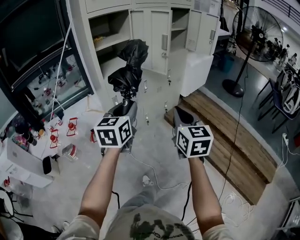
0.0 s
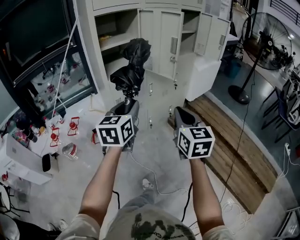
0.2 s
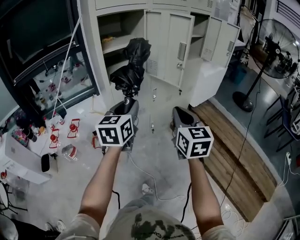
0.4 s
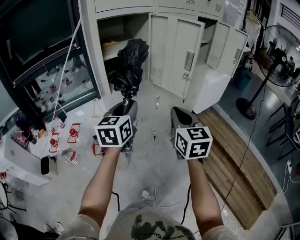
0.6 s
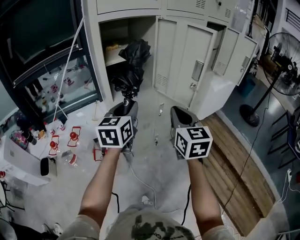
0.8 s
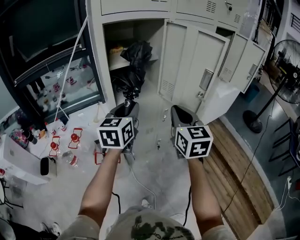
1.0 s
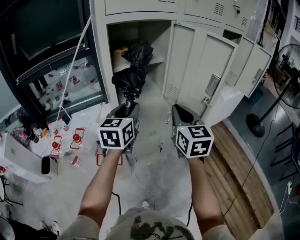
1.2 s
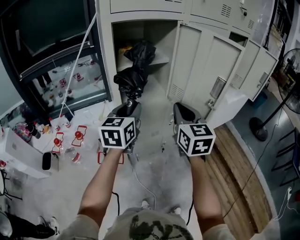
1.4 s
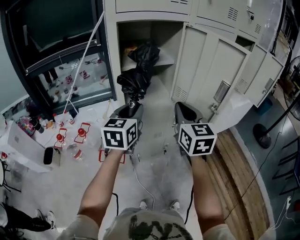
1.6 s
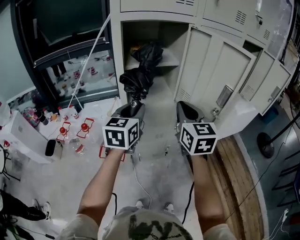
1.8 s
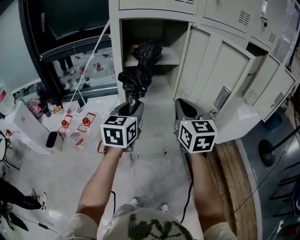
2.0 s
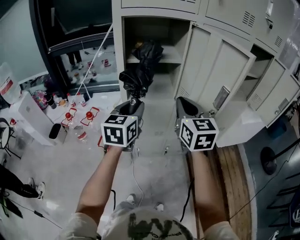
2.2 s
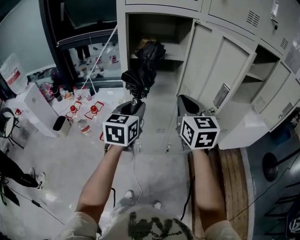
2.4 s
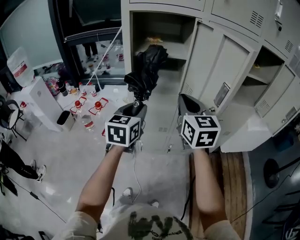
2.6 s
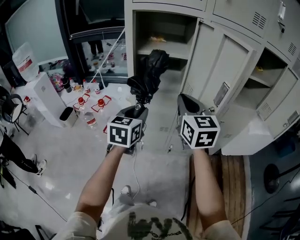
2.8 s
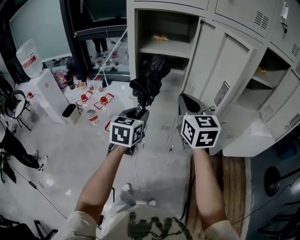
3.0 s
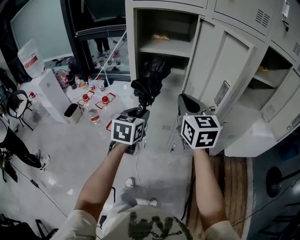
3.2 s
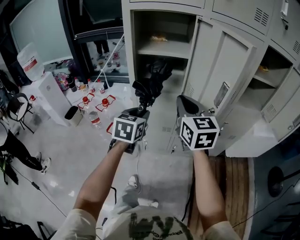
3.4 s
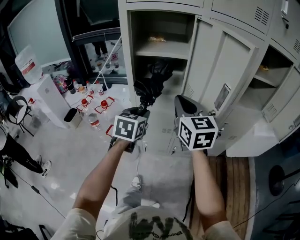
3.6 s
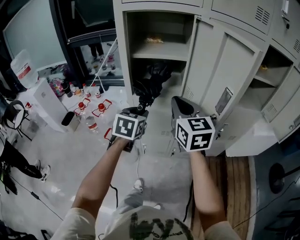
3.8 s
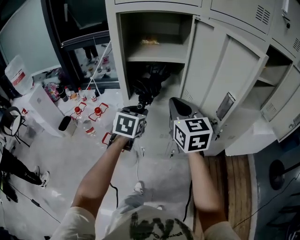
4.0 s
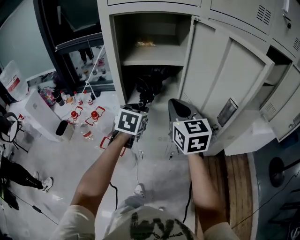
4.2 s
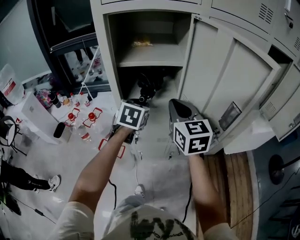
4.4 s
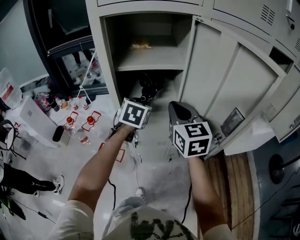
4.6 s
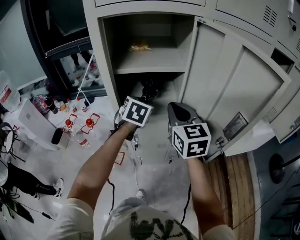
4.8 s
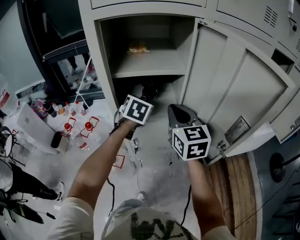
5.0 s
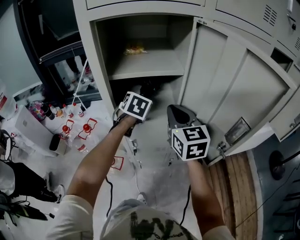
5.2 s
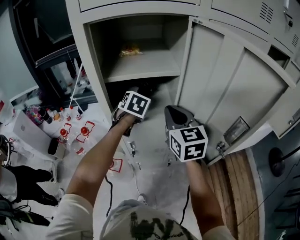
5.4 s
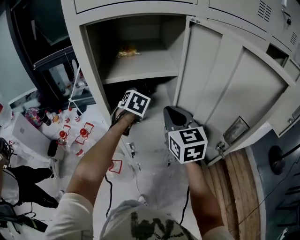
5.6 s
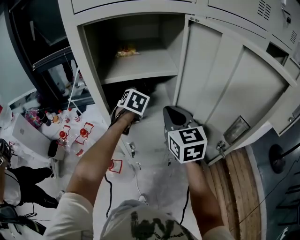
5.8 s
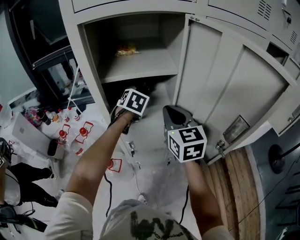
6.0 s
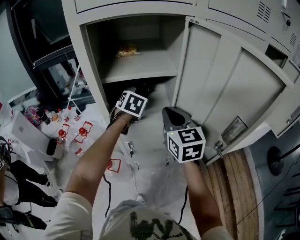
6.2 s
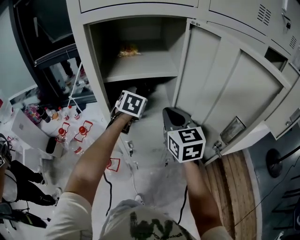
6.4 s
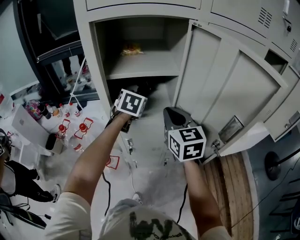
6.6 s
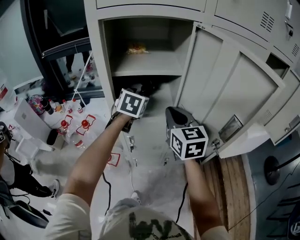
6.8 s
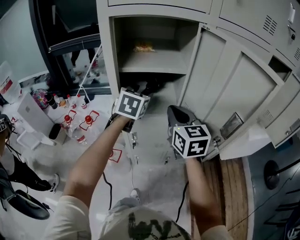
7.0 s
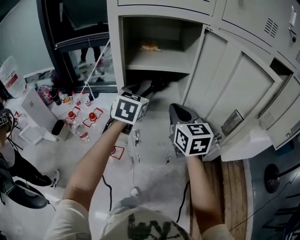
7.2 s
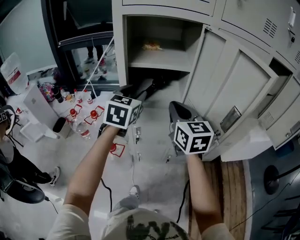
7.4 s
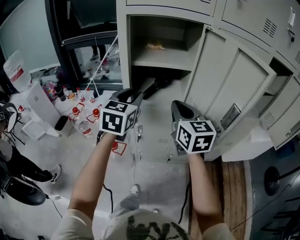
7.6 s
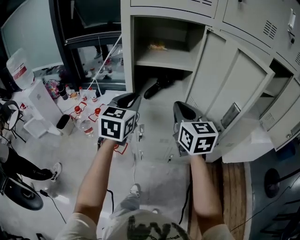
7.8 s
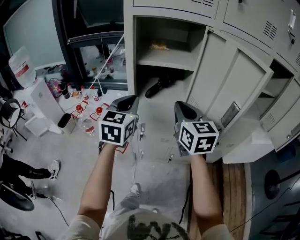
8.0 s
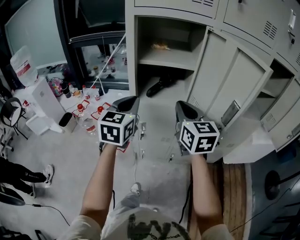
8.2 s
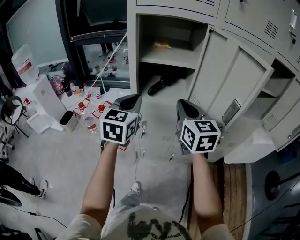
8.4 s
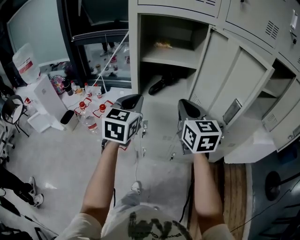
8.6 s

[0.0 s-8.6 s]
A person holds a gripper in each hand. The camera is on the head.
0.0 to 1.4 s: Both grippers travel together forward, about 30 cm.
1.4 to 2.8 s: The left gripper travels backward and downward by roughly 10 cm, and changes its angle by about 20 degrees. The right gripper changes its angle by about 30 degrees.
2.8 to 4.4 s: The right gripper travels forward by approximately 10 cm, while the left gripper travels forward by about 15 cm.
4.4 to 5.8 s: The right gripper ends up some 5 cm from where it was, while the left gripper goes about 15 cm forward and downward.
5.8 to 7.2 s: The left gripper shifts roughly 15 cm upward and backward, rotates roughly 30 degrees, and opens; the right gripper shifts by about 5 cm.
7.2 to 8.6 s: The right gripper heads backward, covering about 5 cm; the left gripper shifts roughly 15 cm backward and to the left, and closes its fingers.

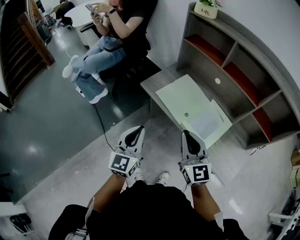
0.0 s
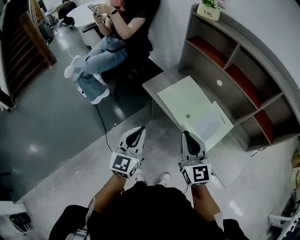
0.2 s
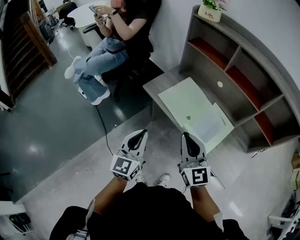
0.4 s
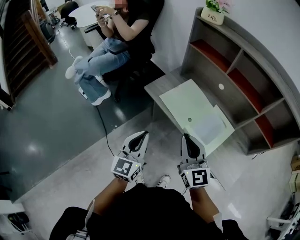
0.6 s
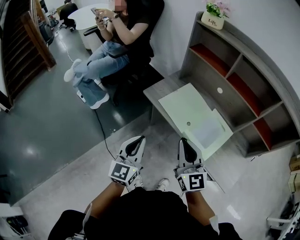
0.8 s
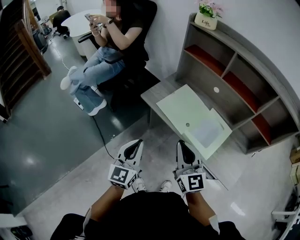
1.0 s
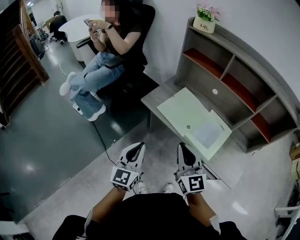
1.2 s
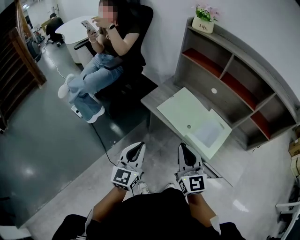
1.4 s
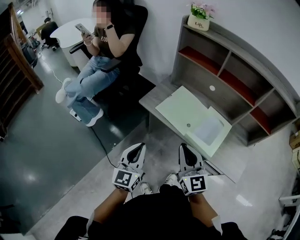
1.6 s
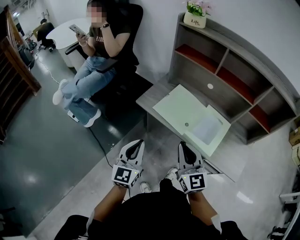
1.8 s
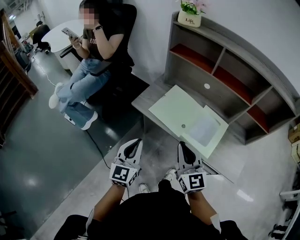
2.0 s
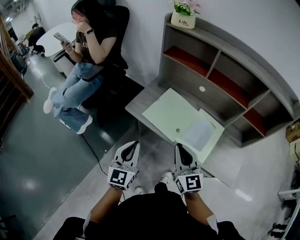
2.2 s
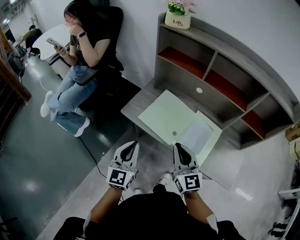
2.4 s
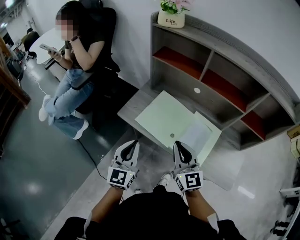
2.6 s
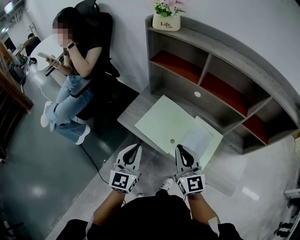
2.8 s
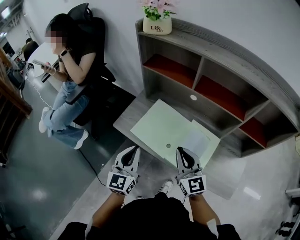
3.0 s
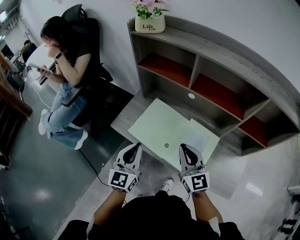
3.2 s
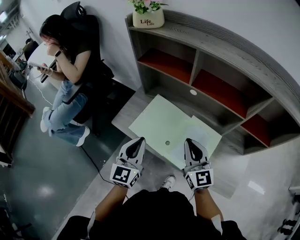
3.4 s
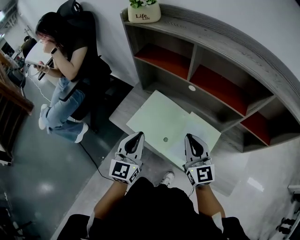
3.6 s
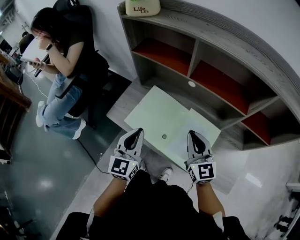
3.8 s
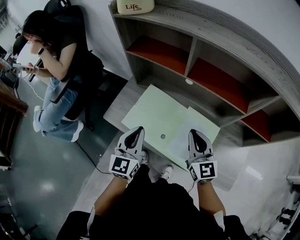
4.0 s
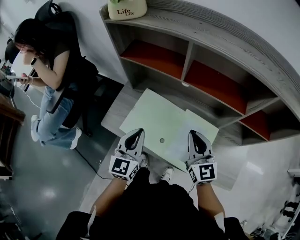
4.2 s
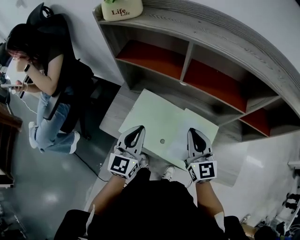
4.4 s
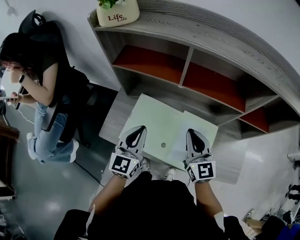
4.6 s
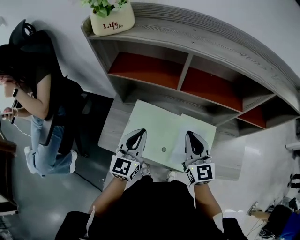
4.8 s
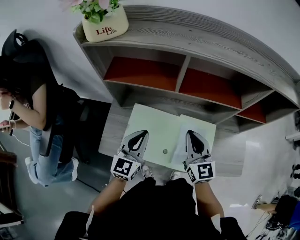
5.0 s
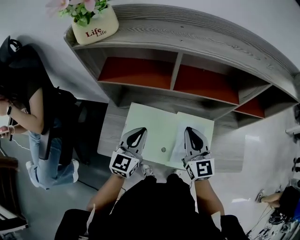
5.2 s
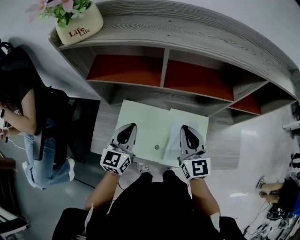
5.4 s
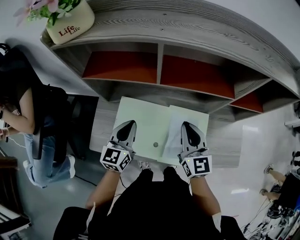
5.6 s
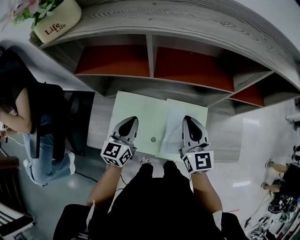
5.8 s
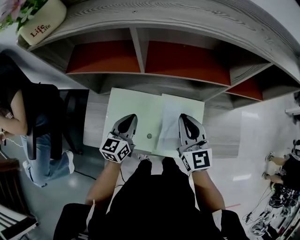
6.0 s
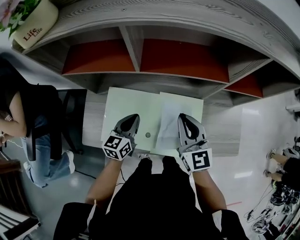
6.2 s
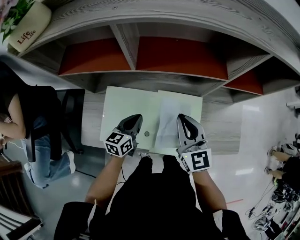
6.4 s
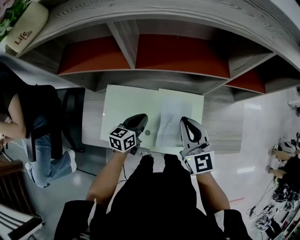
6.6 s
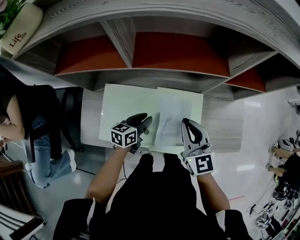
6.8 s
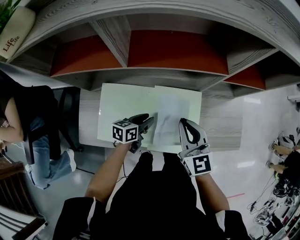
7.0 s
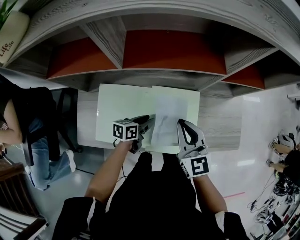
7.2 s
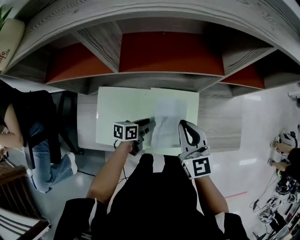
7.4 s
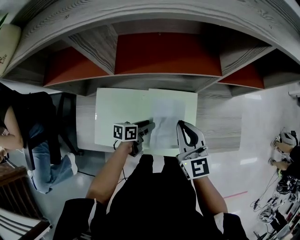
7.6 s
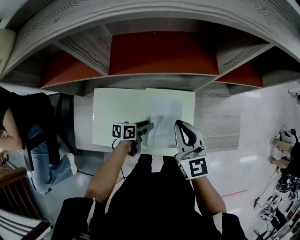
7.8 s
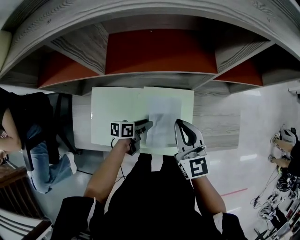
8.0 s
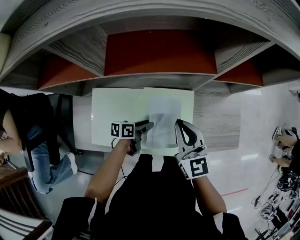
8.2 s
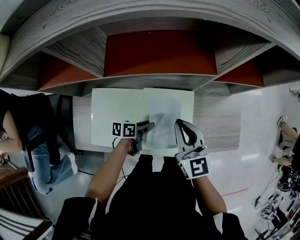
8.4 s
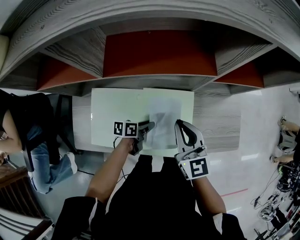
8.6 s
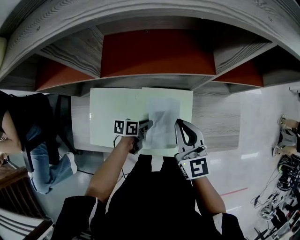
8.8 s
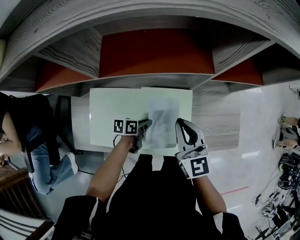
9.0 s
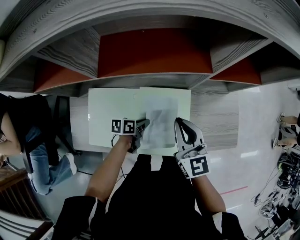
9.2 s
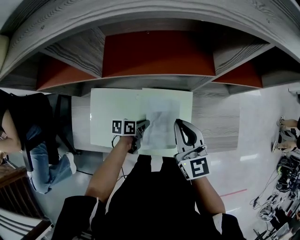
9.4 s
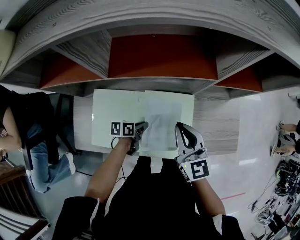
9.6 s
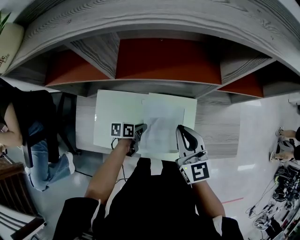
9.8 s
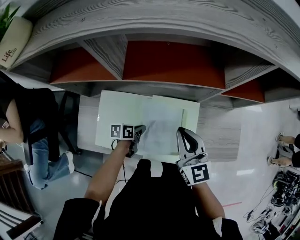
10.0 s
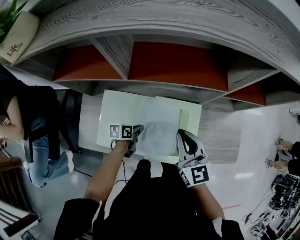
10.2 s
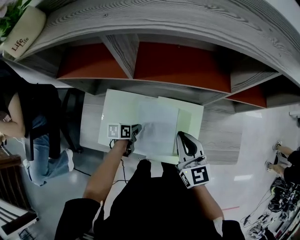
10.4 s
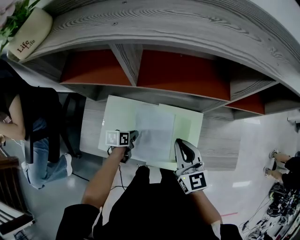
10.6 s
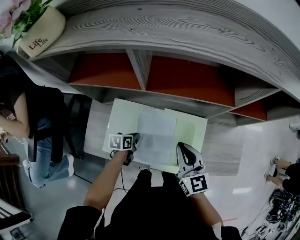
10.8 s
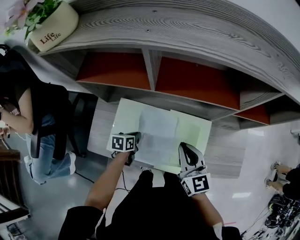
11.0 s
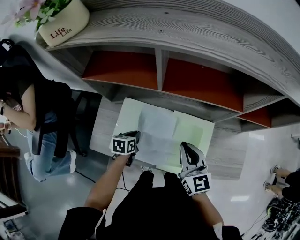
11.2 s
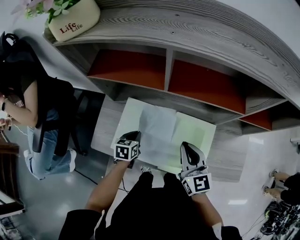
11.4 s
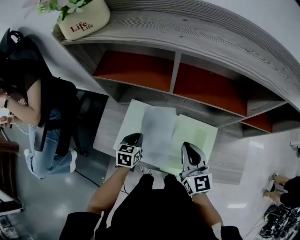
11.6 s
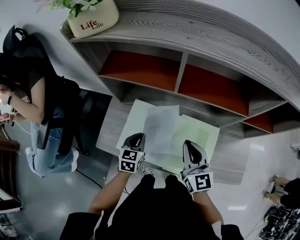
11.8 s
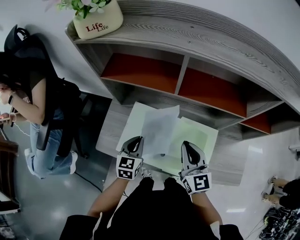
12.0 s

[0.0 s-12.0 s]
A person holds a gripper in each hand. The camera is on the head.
0.0 to 1.6 s: The grippers both shift to the left by about 5 cm.
1.6 to 3.0 s: Both grippers move forward and to the right, approximately 20 cm.
3.0 to 4.4 s: Both grippers travel together forward and to the right, approximately 15 cm.
4.4 to 6.0 s: The left gripper moves downward and forward, some 15 cm, and changes its angle by some 30 degrees, while the right gripper moves approximately 5 cm.
6.0 to 7.6 s: The right gripper goes roughly 5 cm to the right; the left gripper shifts roughly 20 cm downward and to the right, changes its angle by about 50 degrees, and opens.
7.6 to 9.0 s: The left gripper closes its fingers.
9.0 to 10.4 s: The right gripper shifts by about 5 cm, while the left gripper travels to the left by approximately 10 cm.
10.4 to 12.0 s: The left gripper travels upward by some 15 cm, and turns by roughly 50 degrees; the right gripper changes place by about 10 cm.

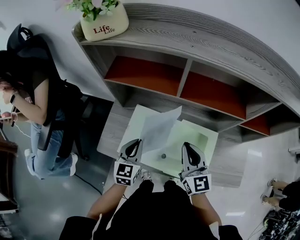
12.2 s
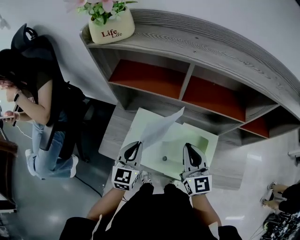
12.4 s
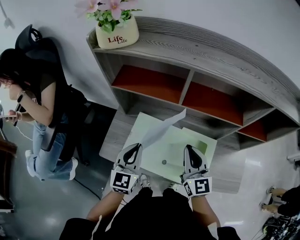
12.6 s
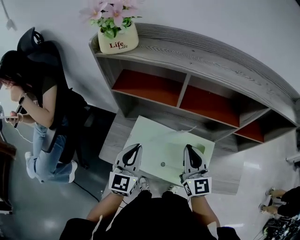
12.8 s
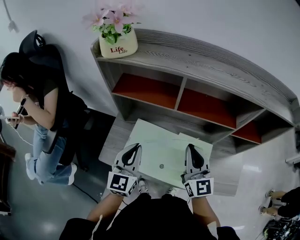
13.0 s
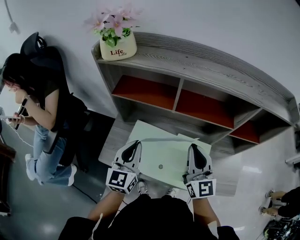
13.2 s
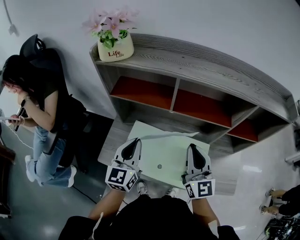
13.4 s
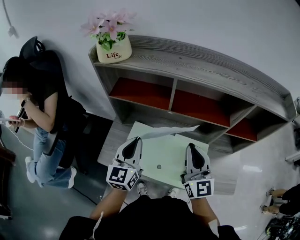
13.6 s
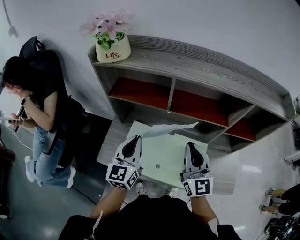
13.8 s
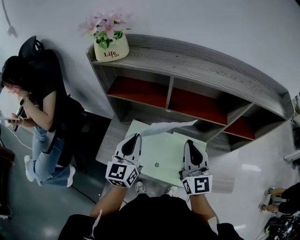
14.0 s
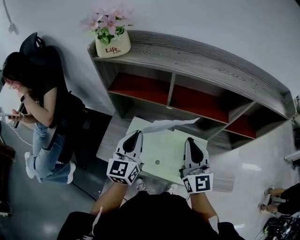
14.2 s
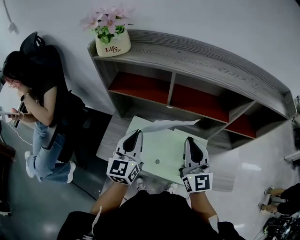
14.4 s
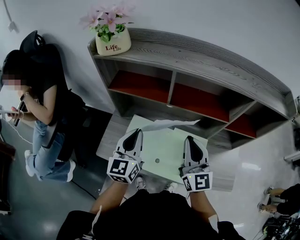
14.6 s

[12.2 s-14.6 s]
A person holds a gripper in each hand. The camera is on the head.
12.2 to 13.4 s: Both grippers move upward, about 15 cm.
13.4 to 14.6 s: The grippers move only a little.

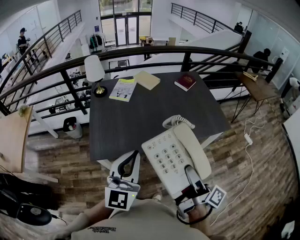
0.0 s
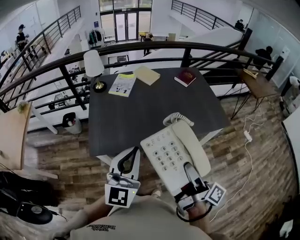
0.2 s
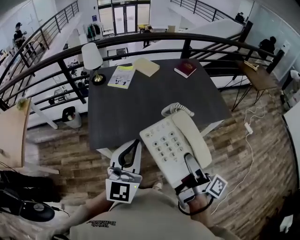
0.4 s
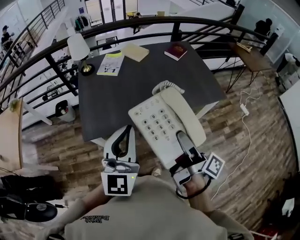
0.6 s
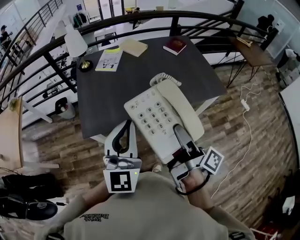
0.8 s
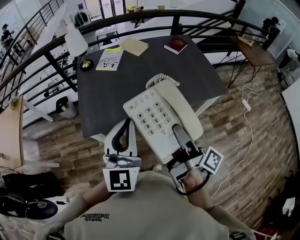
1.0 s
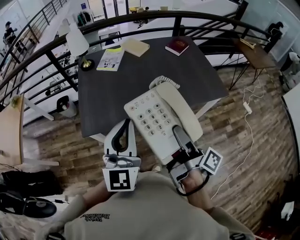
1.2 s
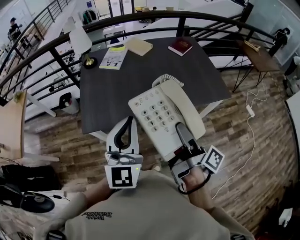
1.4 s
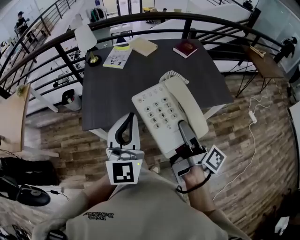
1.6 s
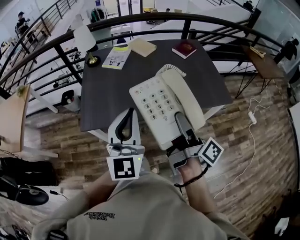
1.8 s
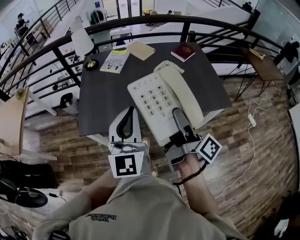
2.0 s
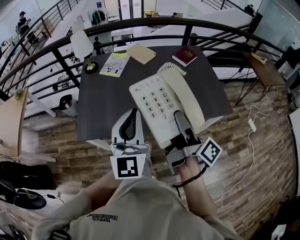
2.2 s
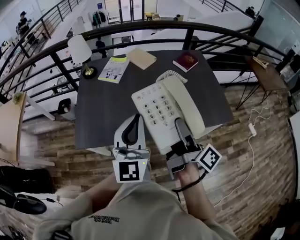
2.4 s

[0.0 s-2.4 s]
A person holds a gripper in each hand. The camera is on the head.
1.2 to 2.4 s: The left gripper changes place by approximately 15 cm.
